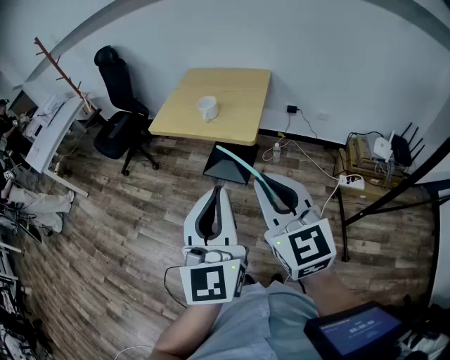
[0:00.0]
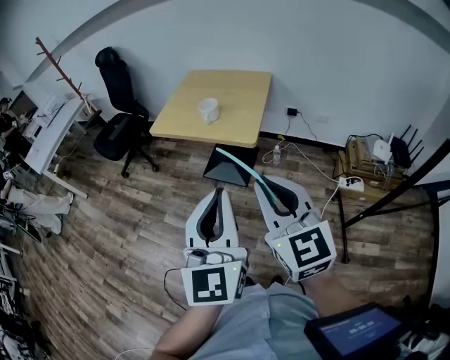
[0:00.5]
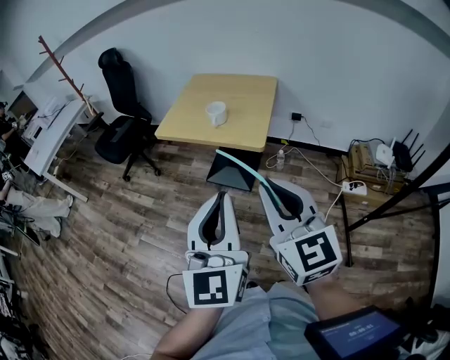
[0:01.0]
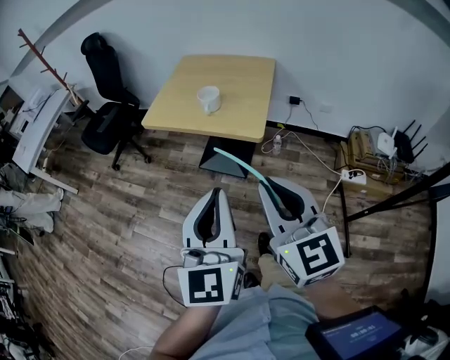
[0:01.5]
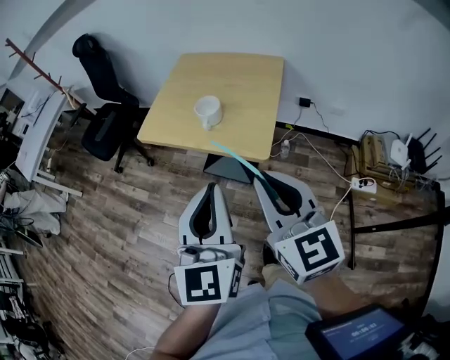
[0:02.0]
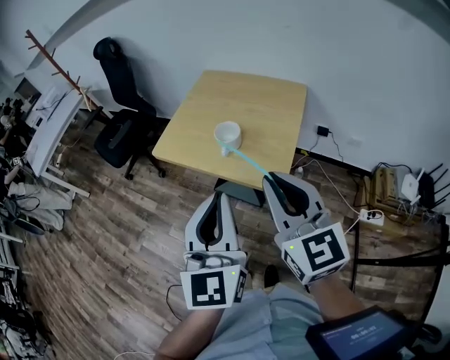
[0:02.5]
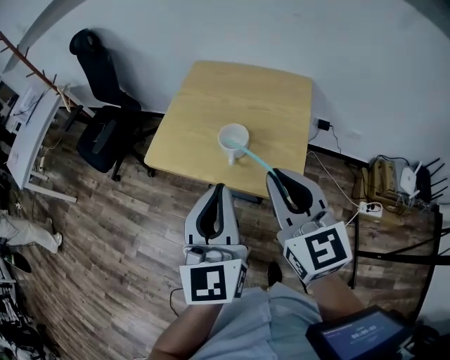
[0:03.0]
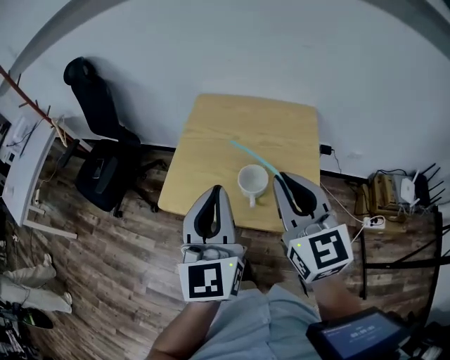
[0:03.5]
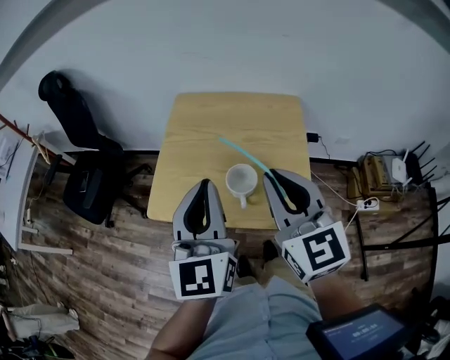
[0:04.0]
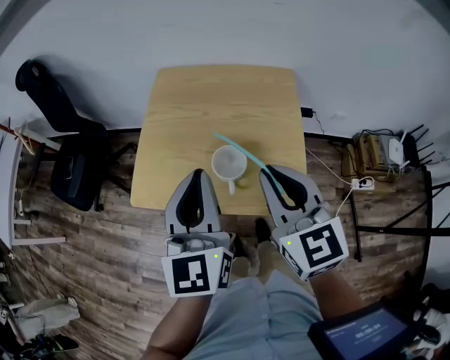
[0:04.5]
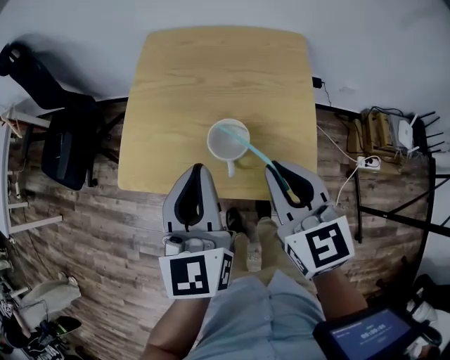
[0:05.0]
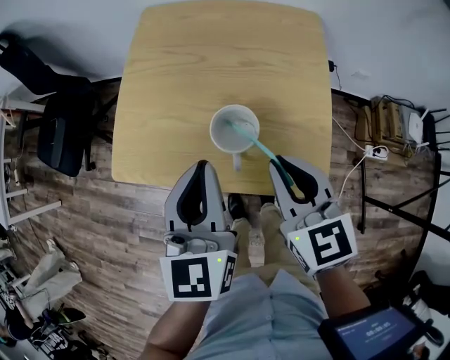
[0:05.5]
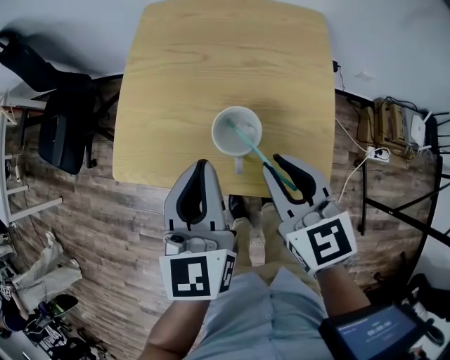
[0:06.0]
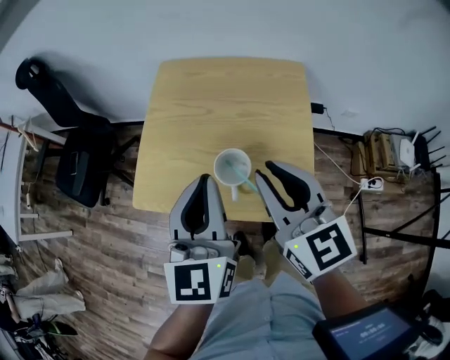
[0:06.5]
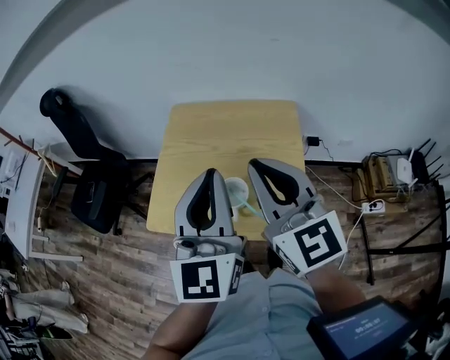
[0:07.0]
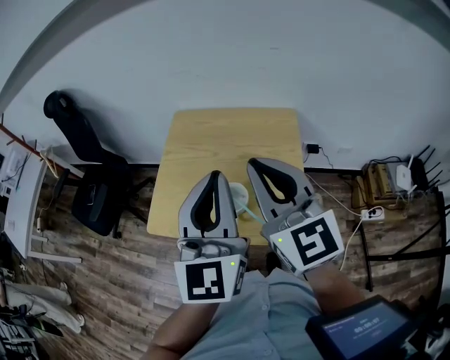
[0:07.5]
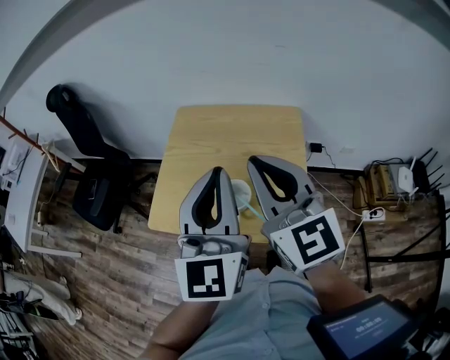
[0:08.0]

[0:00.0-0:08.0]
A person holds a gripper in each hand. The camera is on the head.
0:00.0 to 0:02.0: Both grippers move forward, approximately 20 cm.
0:02.0 to 0:04.0: The grippers both shift forward by some 30 cm.
0:04.0 to 0:06.0: Both grippers travel together downward, approximately 20 cm. The right gripper changes its angle by roughly 20 degrees.
0:06.0 to 0:08.0: Both grippers move upward, roughly 25 cm. The left gripper turns by roughly 30 degrees. Meanwhile the right gripper turns by about 30 degrees.

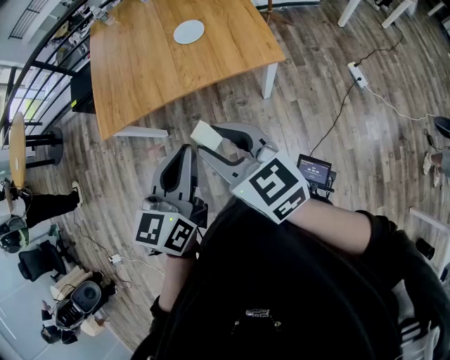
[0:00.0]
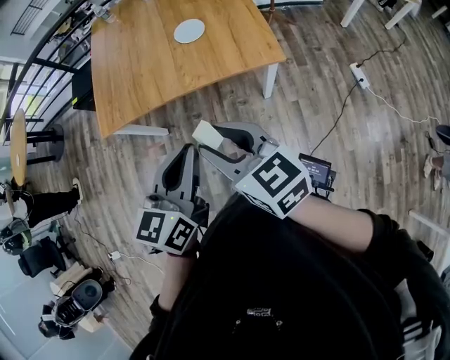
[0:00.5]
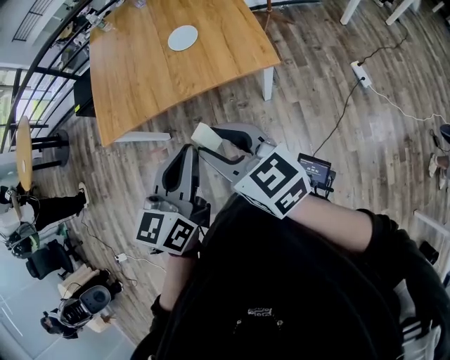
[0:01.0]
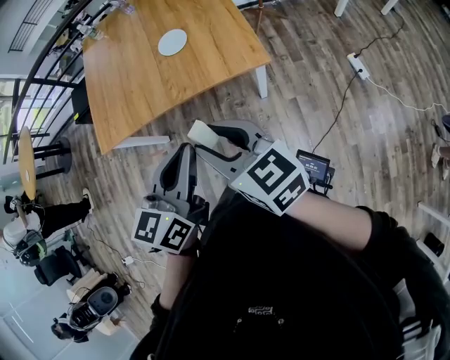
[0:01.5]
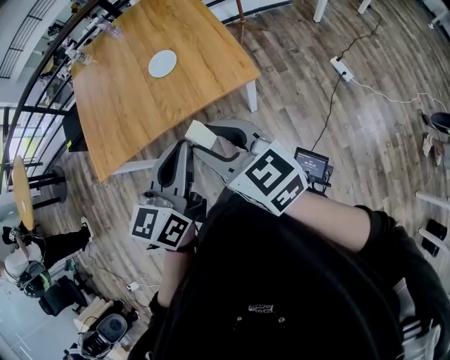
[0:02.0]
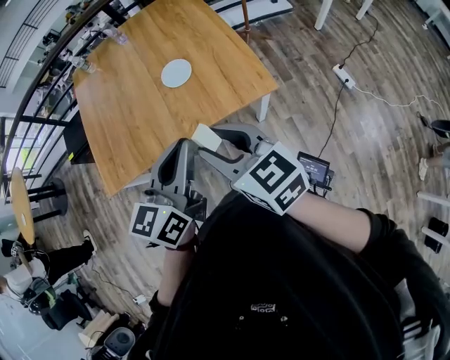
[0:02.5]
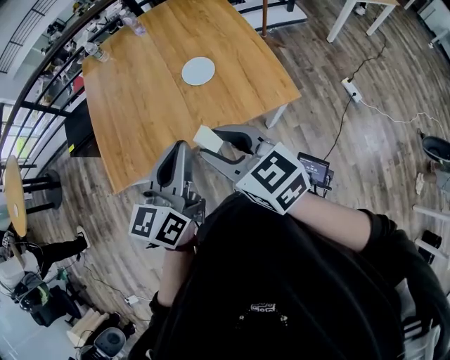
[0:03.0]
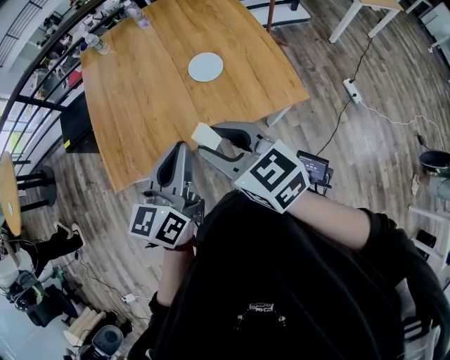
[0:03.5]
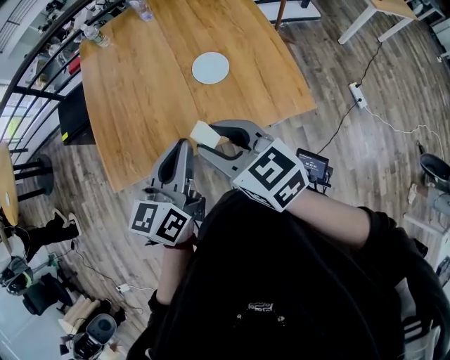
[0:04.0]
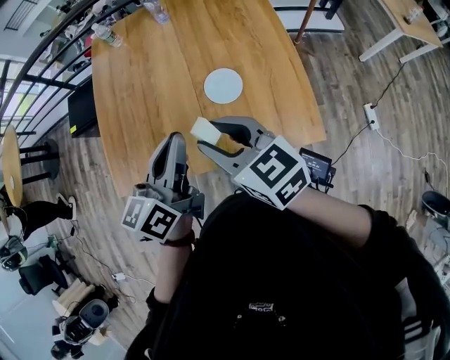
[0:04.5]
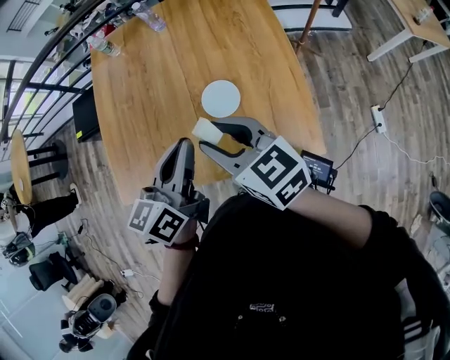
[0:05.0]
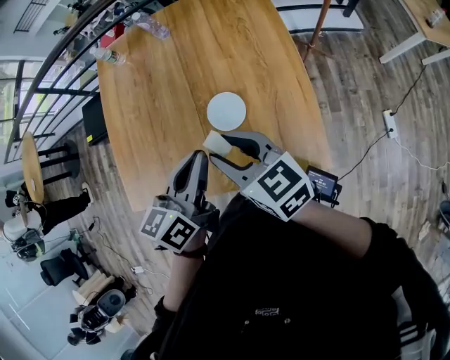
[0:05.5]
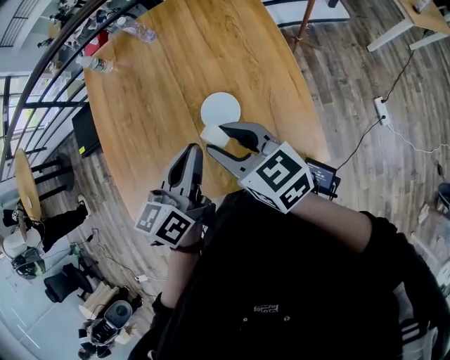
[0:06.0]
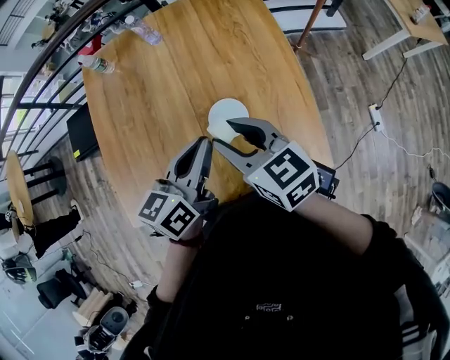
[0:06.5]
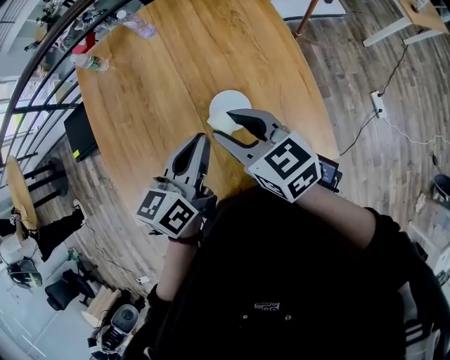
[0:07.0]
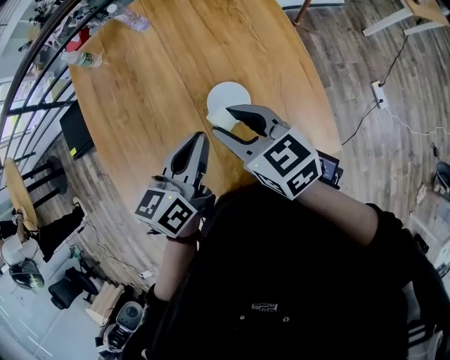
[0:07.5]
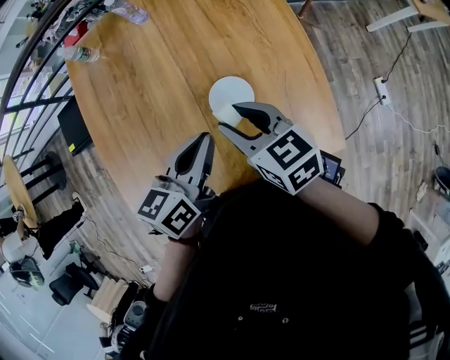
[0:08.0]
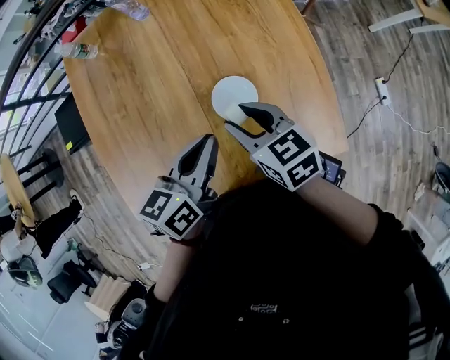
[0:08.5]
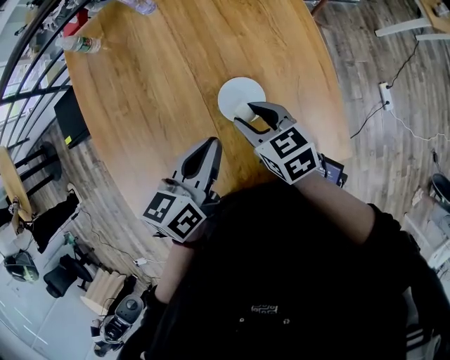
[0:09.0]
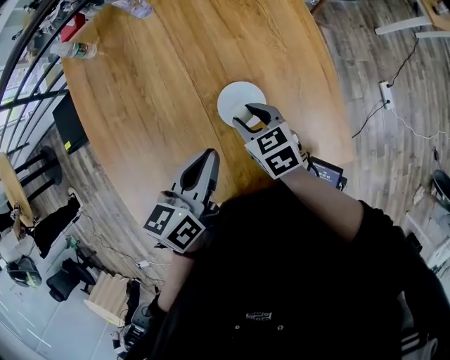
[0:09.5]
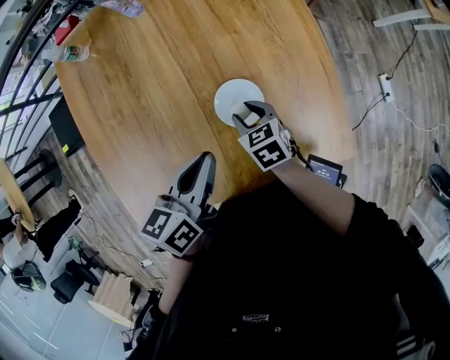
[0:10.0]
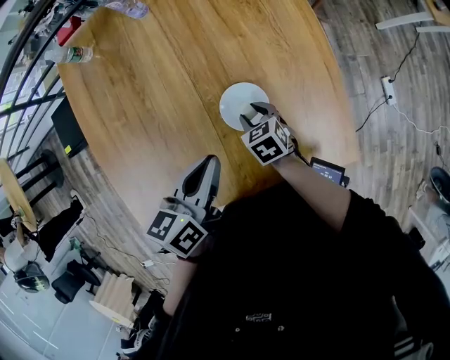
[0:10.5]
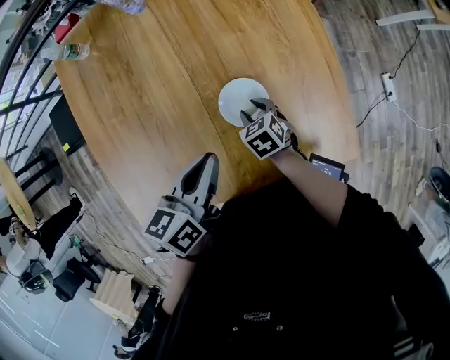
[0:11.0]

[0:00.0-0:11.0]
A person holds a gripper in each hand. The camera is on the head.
0:00.0 to 0:02.0: The two grippers go about 10 cm to the right and forward.
0:02.0 to 0:03.5: The two grippers go some 20 cm to the left and forward.
0:03.5 to 0:05.5: Both grippers move forward and to the right, some 25 cm.
0:05.5 to 0:07.5: The two grippers go approximately 5 cm forward.
0:07.5 to 0:09.0: The right gripper travels downward by approximately 10 cm.
0:09.0 to 0:11.0: The right gripper moves downward, some 15 cm, and turns by some 20 degrees.

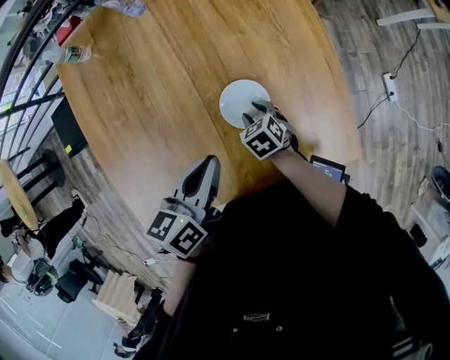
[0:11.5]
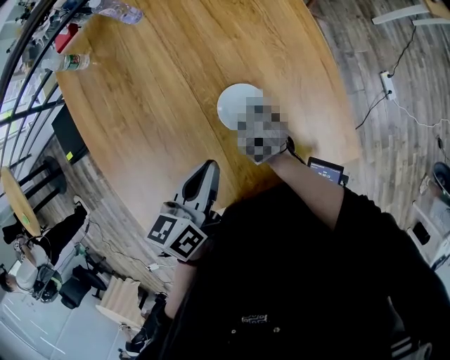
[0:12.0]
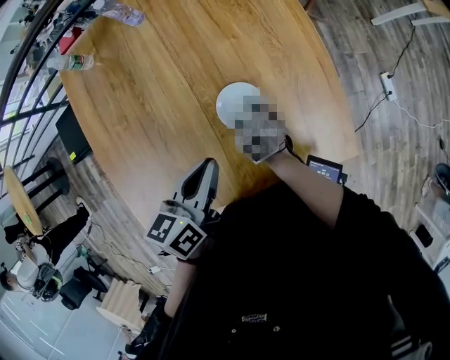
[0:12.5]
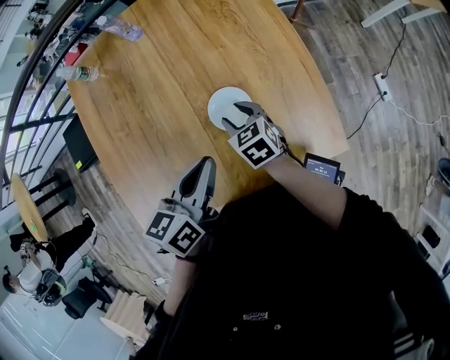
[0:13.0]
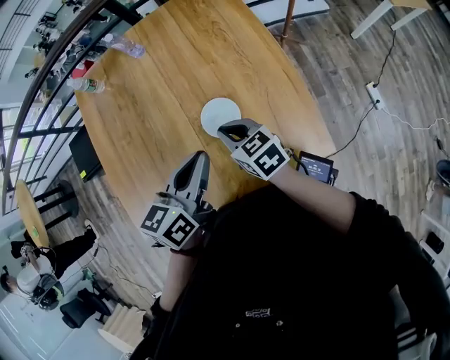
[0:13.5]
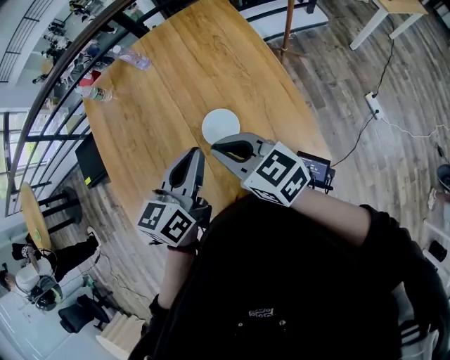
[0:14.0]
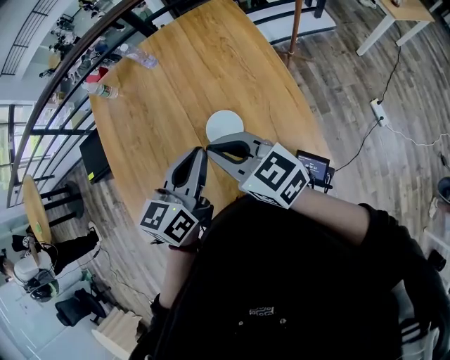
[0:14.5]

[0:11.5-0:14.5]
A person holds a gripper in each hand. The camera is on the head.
0:11.5 to 0:13.0: The left gripper ends up some 5 cm from where it was. The right gripper shifts about 10 cm upward.
0:13.0 to 0:14.5: The left gripper travels upward by about 10 cm. The right gripper shifts approximately 25 cm upward, points its fingers some 30 degrees further upward, and closes its fingers.

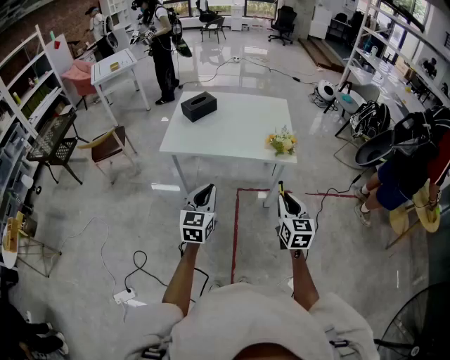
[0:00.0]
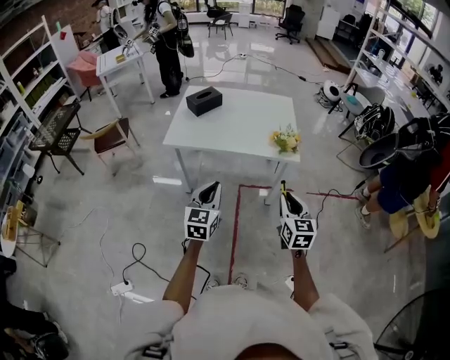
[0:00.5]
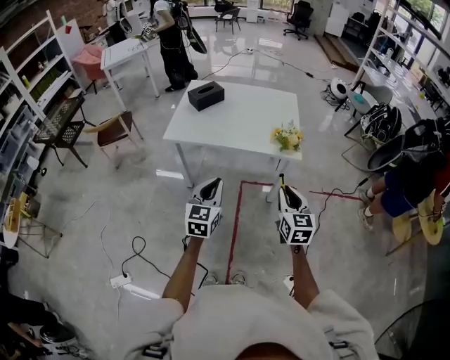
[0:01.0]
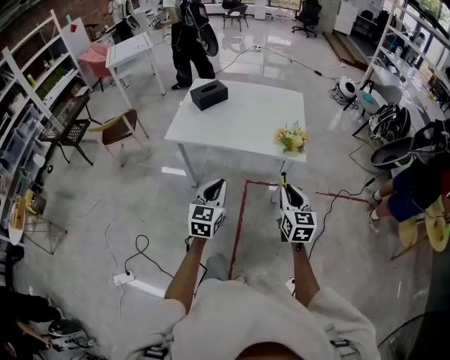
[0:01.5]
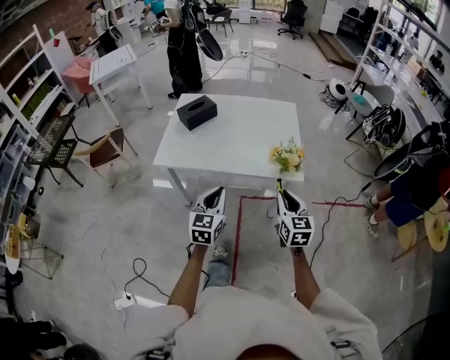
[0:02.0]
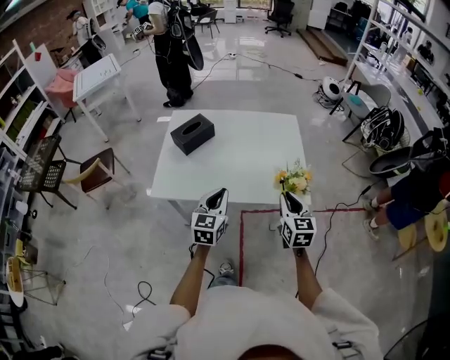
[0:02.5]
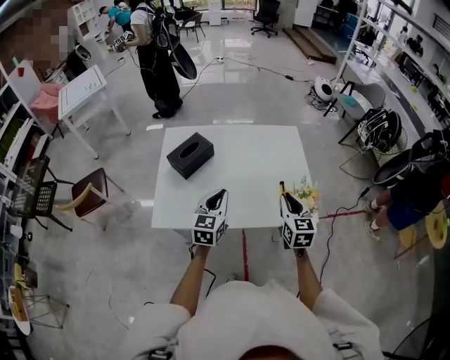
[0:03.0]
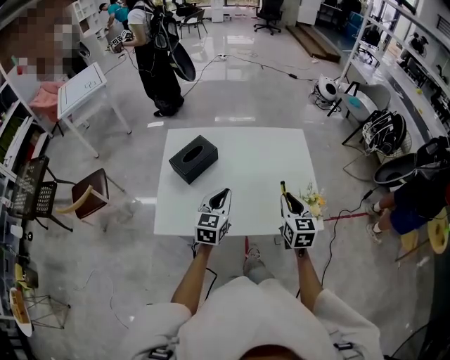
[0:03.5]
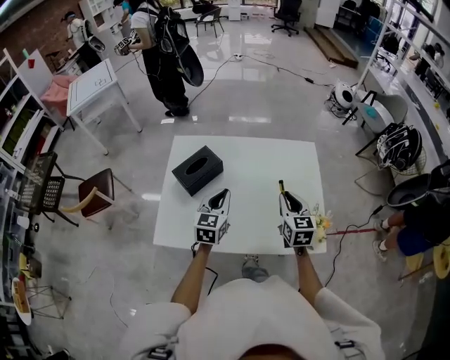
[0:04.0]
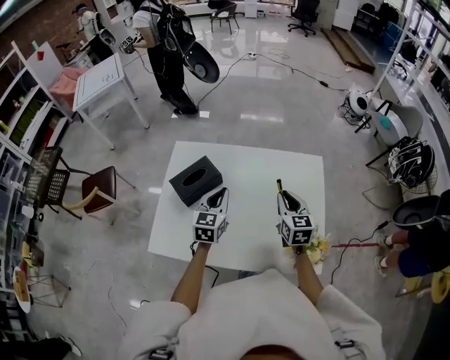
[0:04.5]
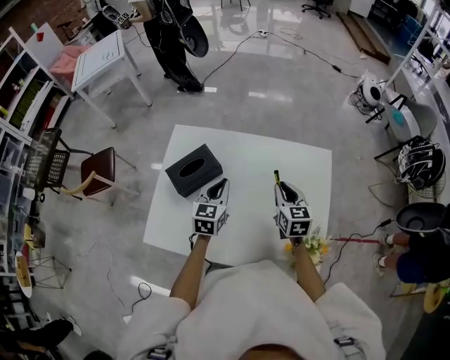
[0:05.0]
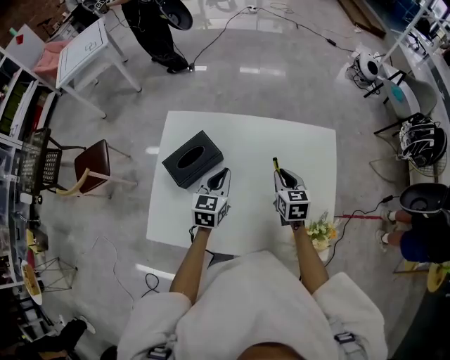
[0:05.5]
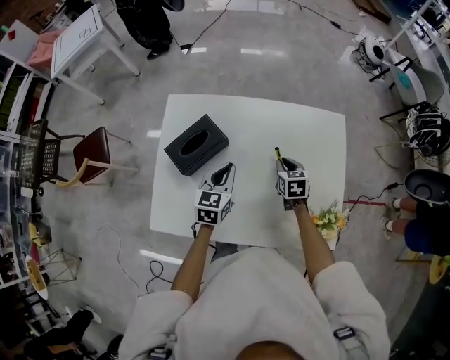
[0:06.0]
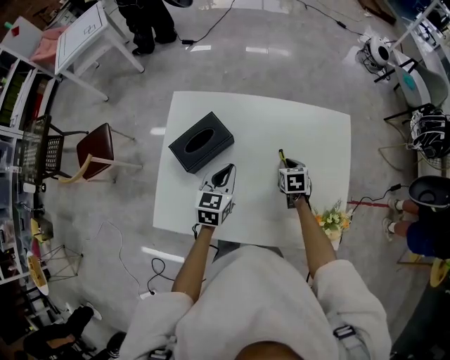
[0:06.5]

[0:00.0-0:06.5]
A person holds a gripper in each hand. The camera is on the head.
0:00.0 to 0:02.0: Both grippers move forward, some 15 cm.
0:02.0 to 0:04.5: The two grippers travel together, forward, approximately 40 cm.
0:04.5 to 0:06.5: The left gripper travels downward by about 5 cm. The right gripper is displaced downward by some 20 cm, and tilts its fingers about 30 degrees downward.
